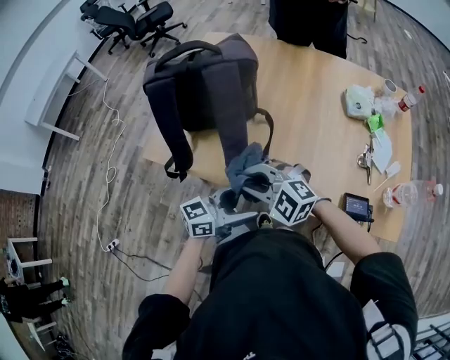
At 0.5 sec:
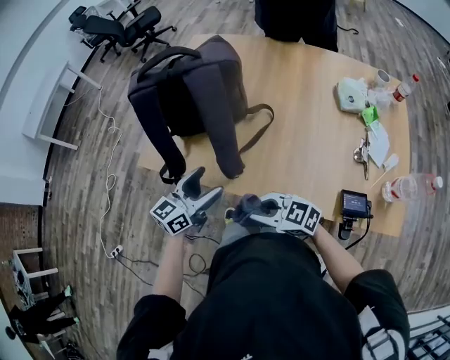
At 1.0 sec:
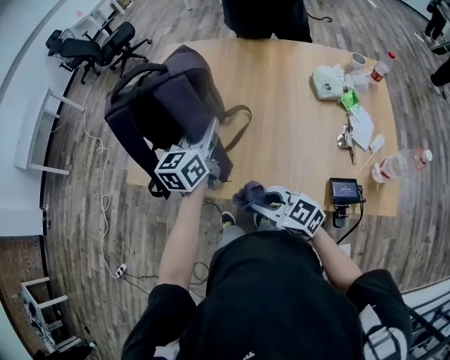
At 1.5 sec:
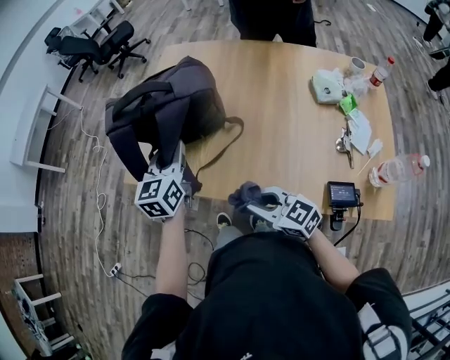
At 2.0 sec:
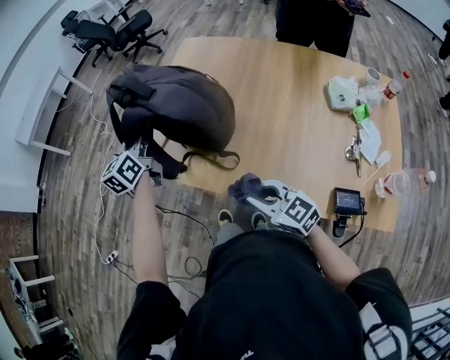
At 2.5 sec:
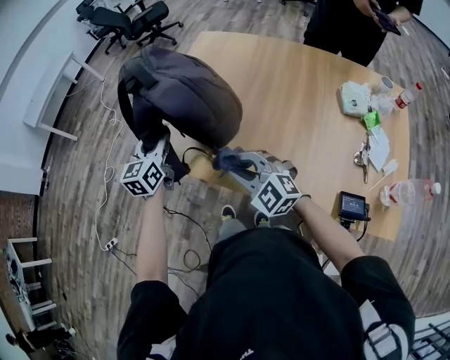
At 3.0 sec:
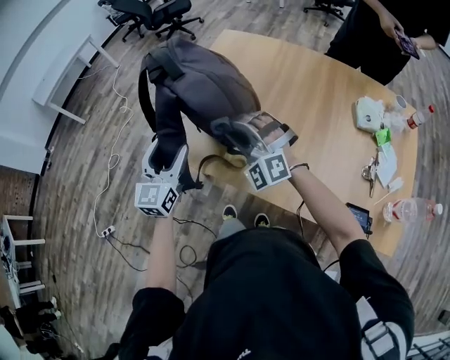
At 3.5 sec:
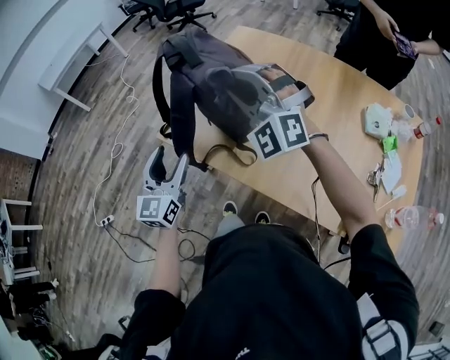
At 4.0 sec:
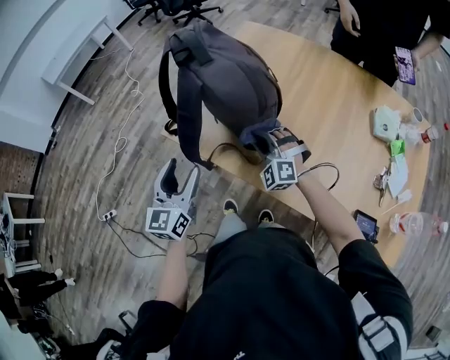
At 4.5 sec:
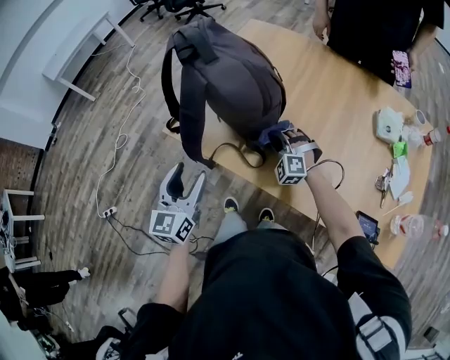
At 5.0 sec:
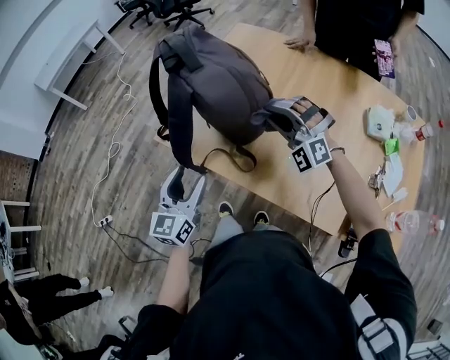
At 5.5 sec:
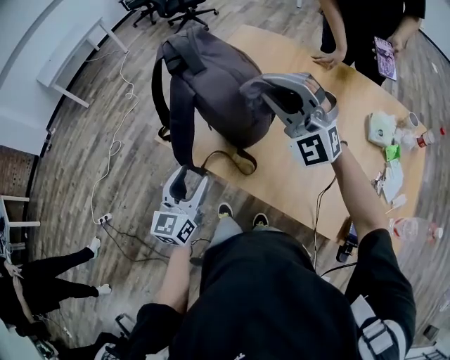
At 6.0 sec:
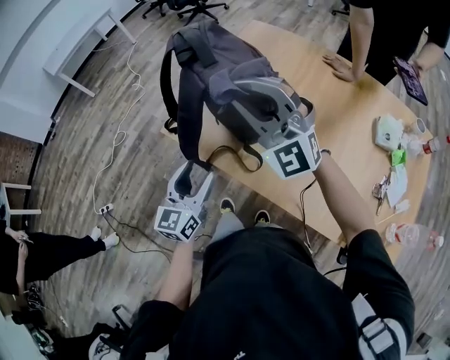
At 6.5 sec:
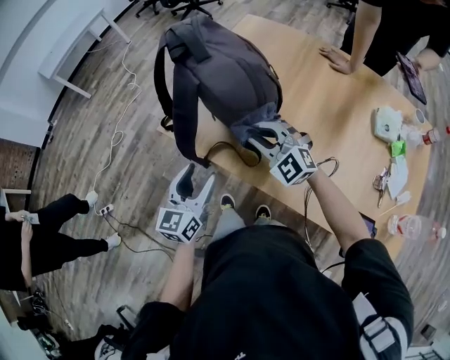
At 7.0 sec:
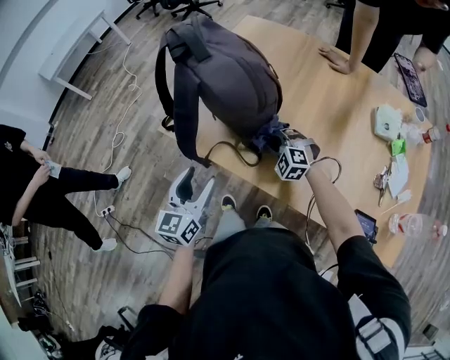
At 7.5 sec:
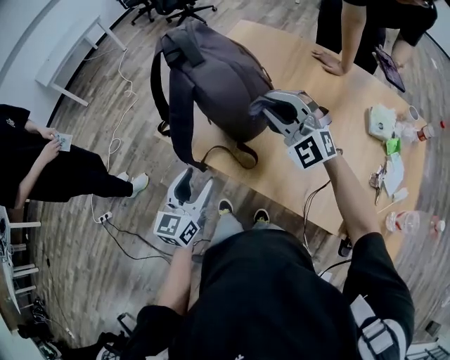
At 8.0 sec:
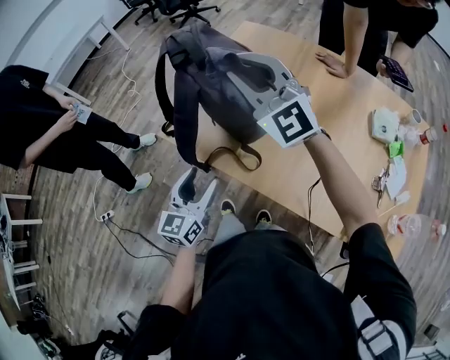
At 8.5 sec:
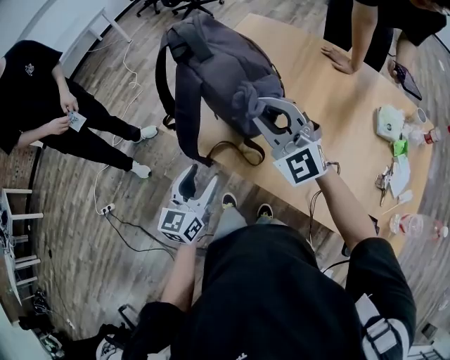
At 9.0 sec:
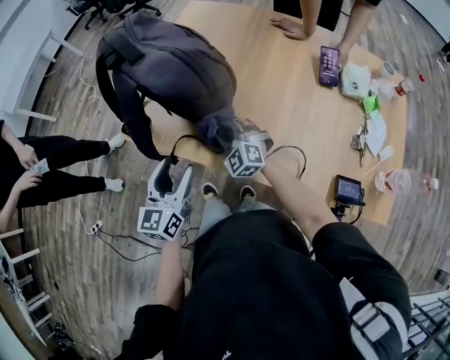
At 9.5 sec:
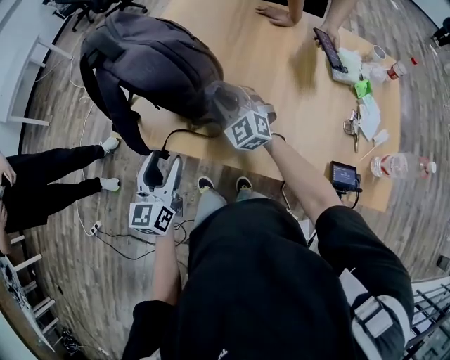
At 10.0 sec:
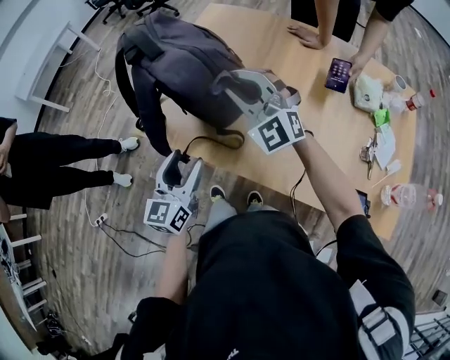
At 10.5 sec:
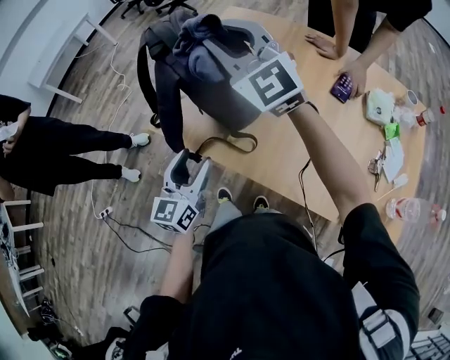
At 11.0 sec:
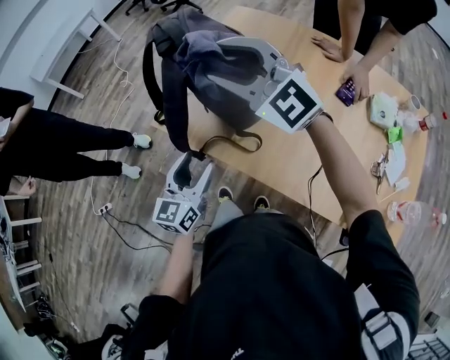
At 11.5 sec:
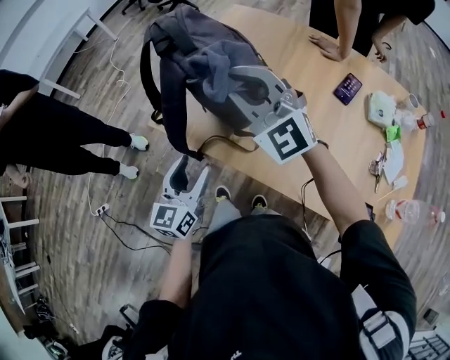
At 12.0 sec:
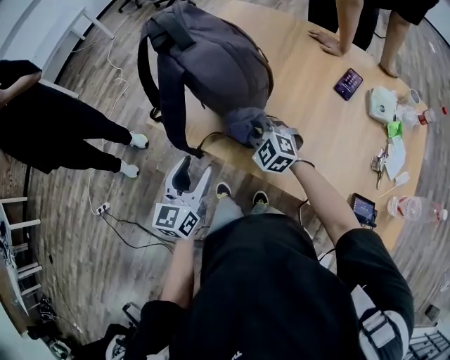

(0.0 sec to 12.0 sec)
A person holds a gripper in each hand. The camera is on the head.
0.0 sec - 2.0 sec: The right gripper rotates approximately 40 degrees. The left gripper ends up some 35 cm from where it was, swivels approximately 60 degrees, and closes up.
2.0 sec - 4.0 sec: The right gripper is displaced forward by approximately 20 cm, reaches roughly 20 cm upward, then returns, and twists approximately 60 degrees counterclockwise, seen from behind; the left gripper is displaced backward and to the left by some 20 cm, and opens its fingers.
4.0 sec - 6.0 sec: The right gripper is displaced upward by approximately 25 cm, and points its fingers about 30 degrees further upward.
6.0 sec - 8.0 sec: The right gripper goes downward and returns, some 35 cm each way.
8.0 sec - 10.0 sec: The right gripper goes some 5 cm to the right, and goes downward and returns, about 35 cm each way.
10.0 sec - 12.0 sec: The right gripper is displaced downward by some 20 cm, points its fingers some 30 degrees further downward, and opens and closes again.

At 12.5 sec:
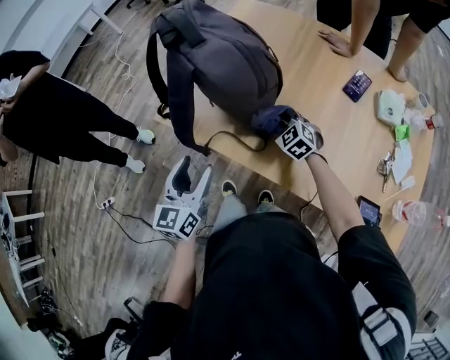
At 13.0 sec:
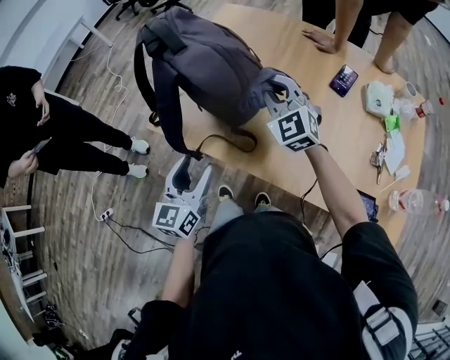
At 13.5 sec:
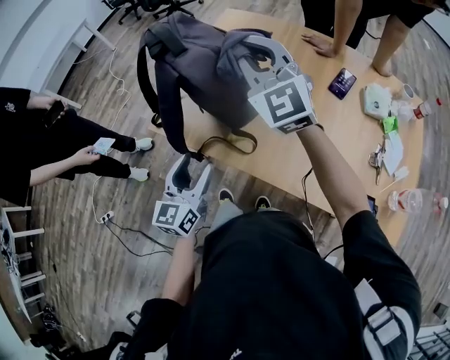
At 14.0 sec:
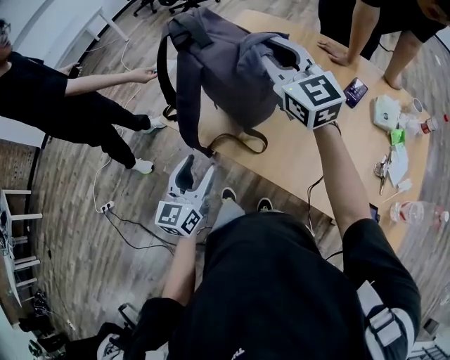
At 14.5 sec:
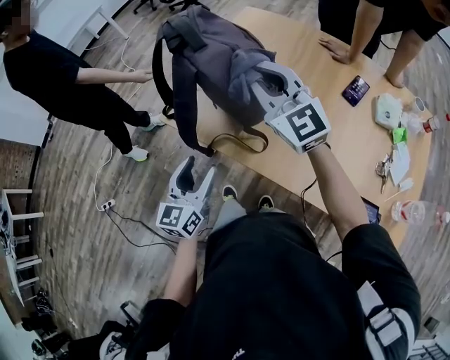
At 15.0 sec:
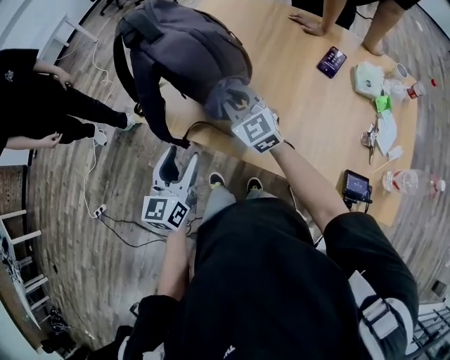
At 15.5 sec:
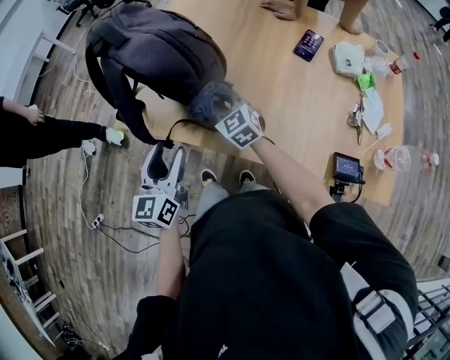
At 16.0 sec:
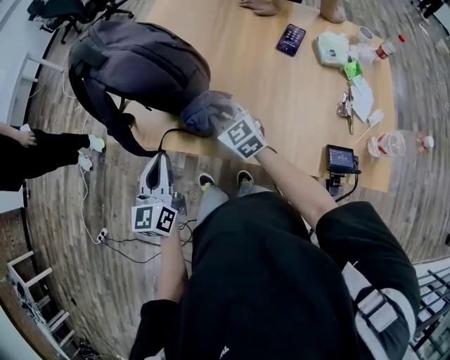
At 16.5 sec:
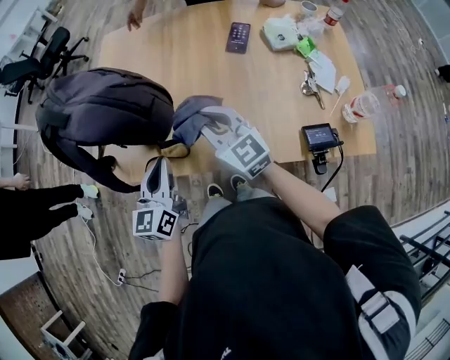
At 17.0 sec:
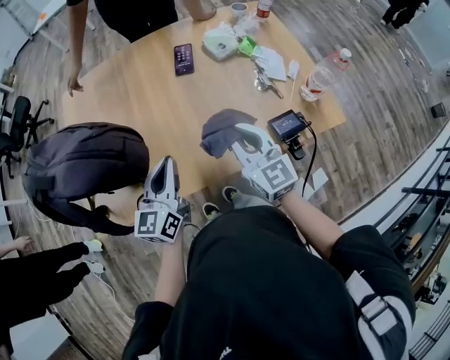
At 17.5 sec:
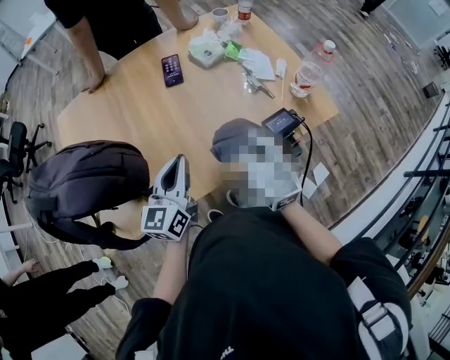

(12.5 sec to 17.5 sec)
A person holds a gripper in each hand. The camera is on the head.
12.5 sec - 15.0 sec: The right gripper travels upward and to the left by roughly 15 cm, and tilts its fingers approximately 30 degrees upward.
15.0 sec - 17.5 sec: The right gripper moves roughly 10 cm downward and comes back, and rotates approximately 60 degrees. Meanwhile the left gripper changes place by roughly 25 cm, changes its angle by about 50 degrees, and closes.

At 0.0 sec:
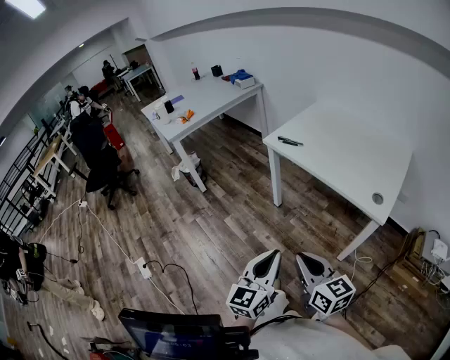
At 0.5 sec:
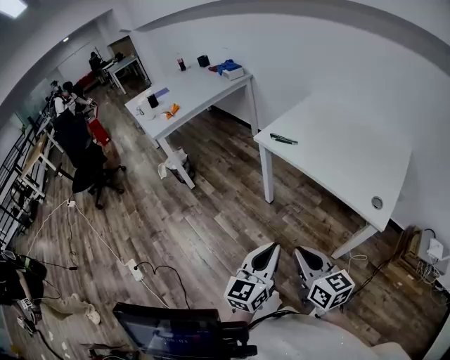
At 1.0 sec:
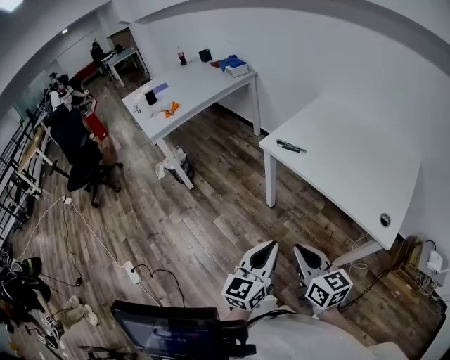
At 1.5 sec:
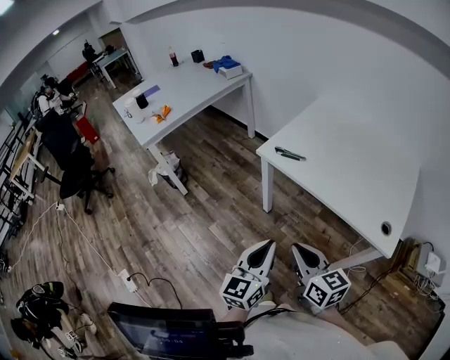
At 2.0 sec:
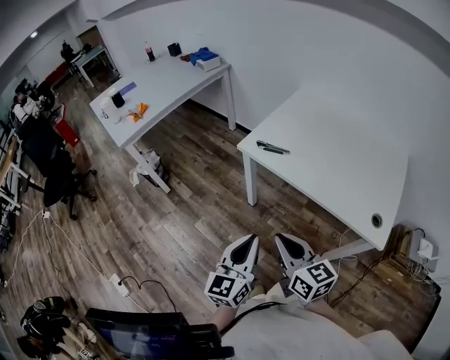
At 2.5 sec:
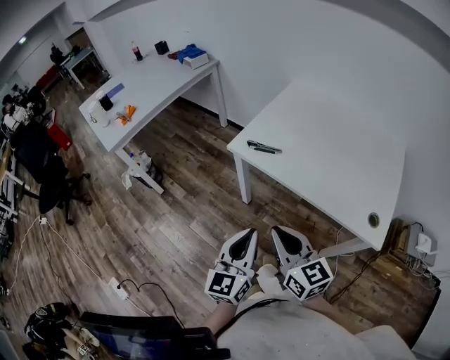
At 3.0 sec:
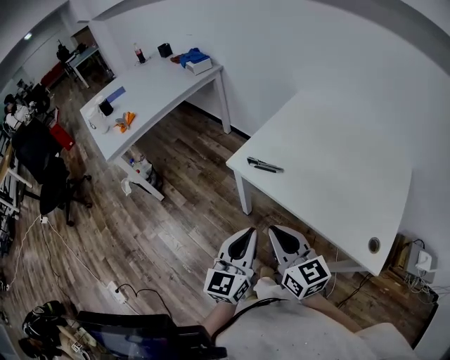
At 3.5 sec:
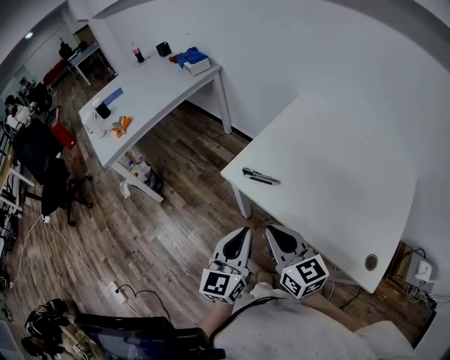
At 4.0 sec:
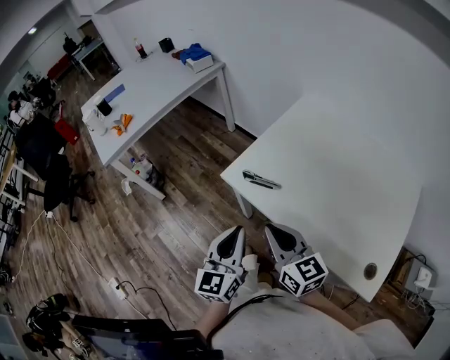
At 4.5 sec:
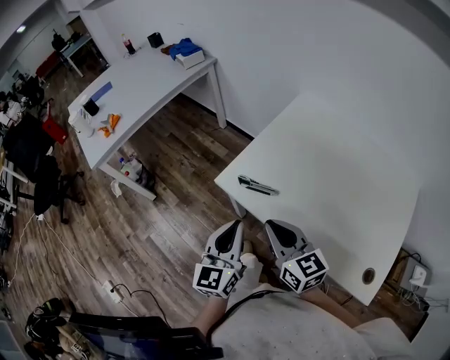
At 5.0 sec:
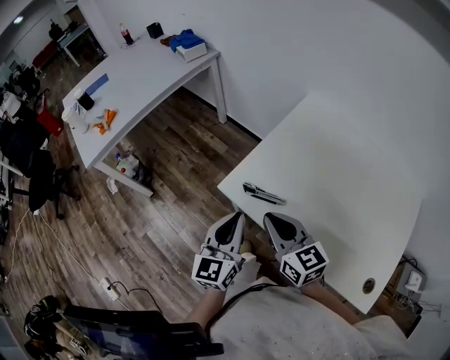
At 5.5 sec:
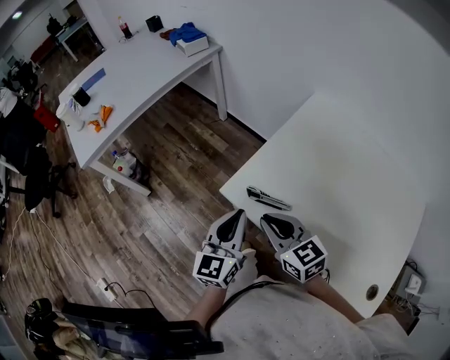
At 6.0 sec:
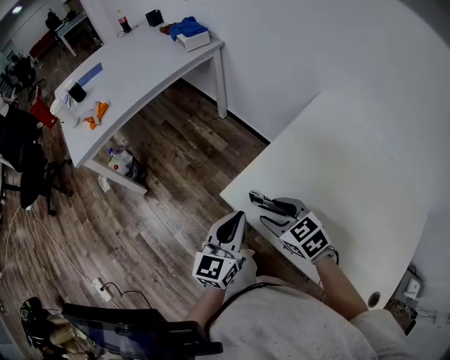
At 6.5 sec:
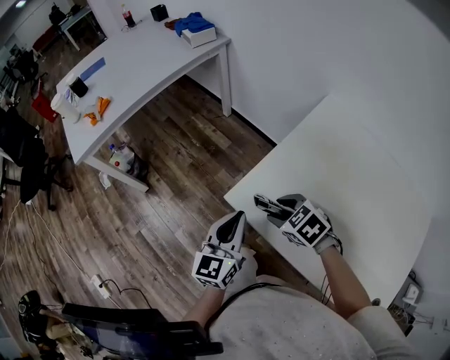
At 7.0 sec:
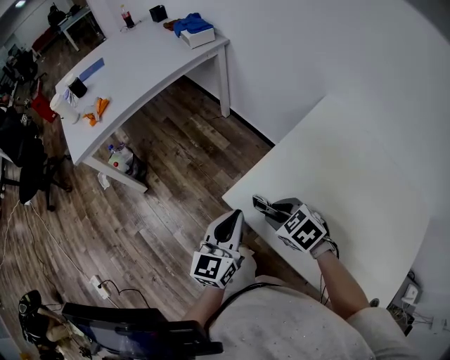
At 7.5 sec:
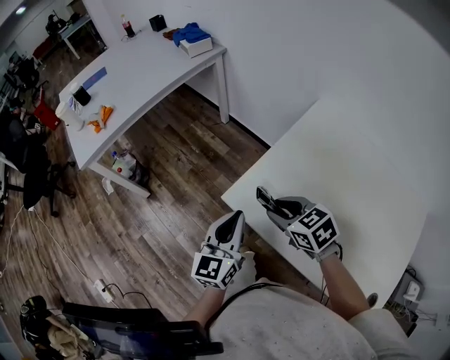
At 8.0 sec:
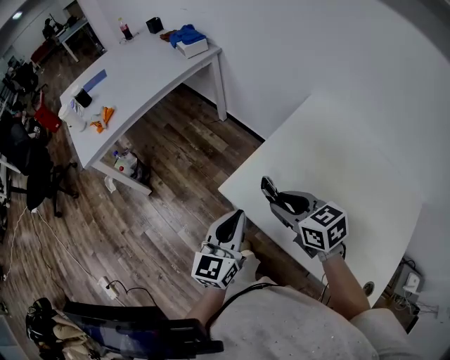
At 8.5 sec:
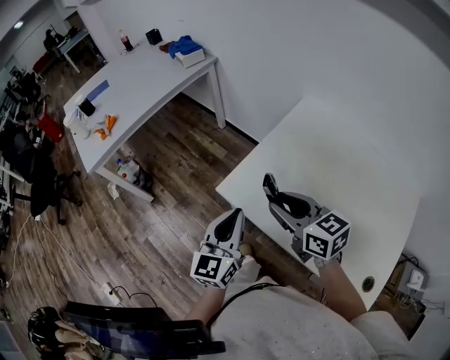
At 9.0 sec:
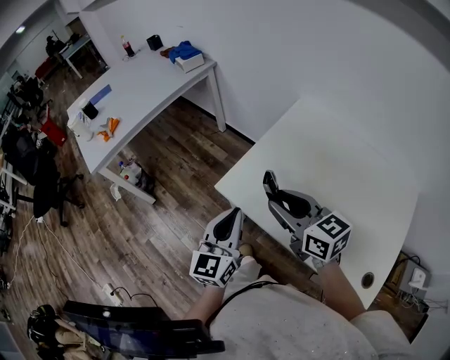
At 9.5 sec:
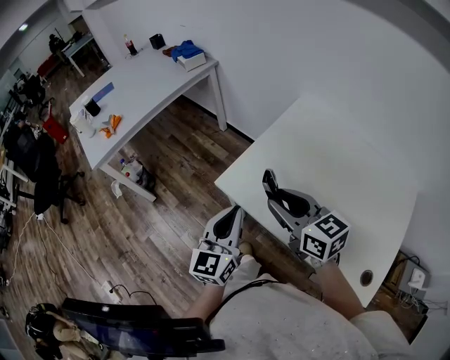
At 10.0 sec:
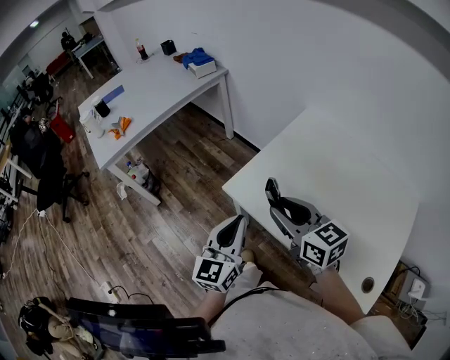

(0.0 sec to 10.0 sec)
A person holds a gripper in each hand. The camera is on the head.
0.0 sec - 2.0 sec: Both grippers travel together forward, some 25 cm.
2.0 sec - 4.0 sec: Both grippers travel together forward, approximately 20 cm.
4.0 sec - 6.0 sec: The grippers both shift forward and downward by some 20 cm. The right gripper tilts its fingers some 30 degrees downward, and opens up.
6.0 sec - 8.0 sec: The right gripper heads upward, covering roughly 10 cm. The left gripper goes roughly 5 cm upward.
8.0 sec - 10.0 sec: The left gripper travels backward by roughly 5 cm. Meanwhile the right gripper is displaced upward and backward by about 10 cm.
